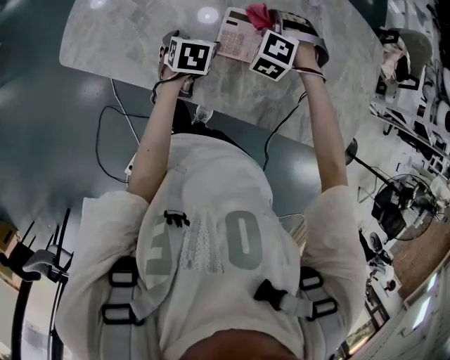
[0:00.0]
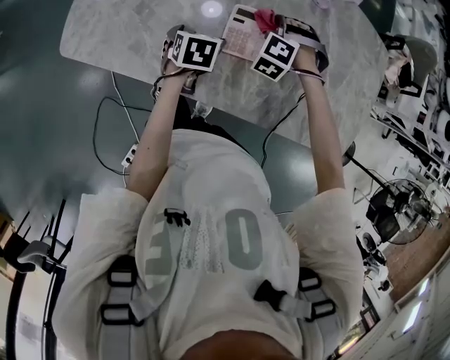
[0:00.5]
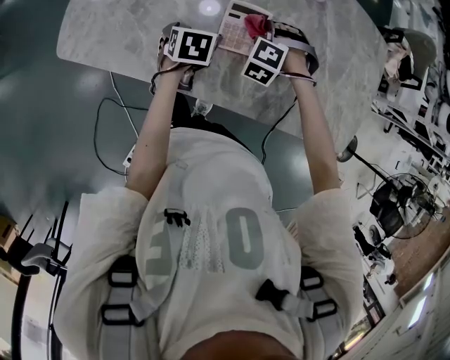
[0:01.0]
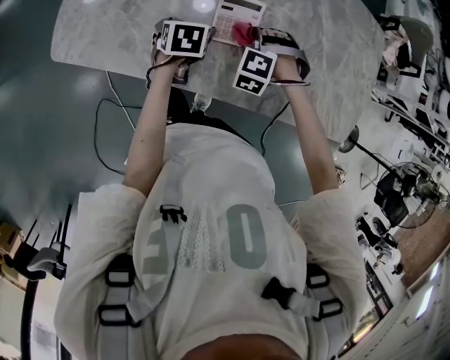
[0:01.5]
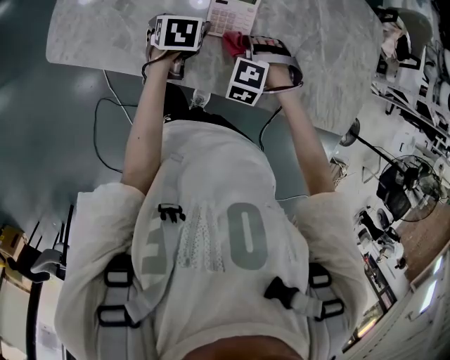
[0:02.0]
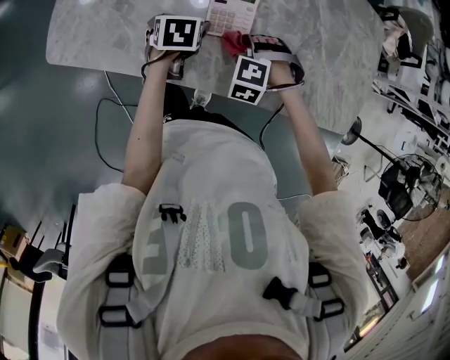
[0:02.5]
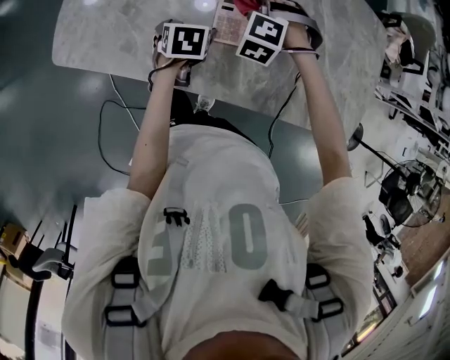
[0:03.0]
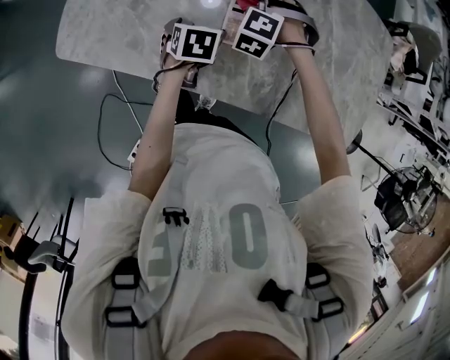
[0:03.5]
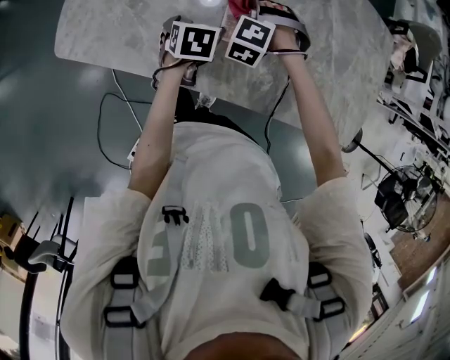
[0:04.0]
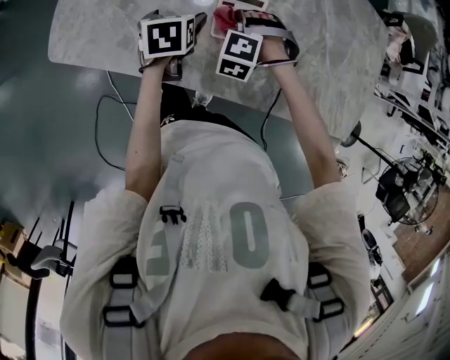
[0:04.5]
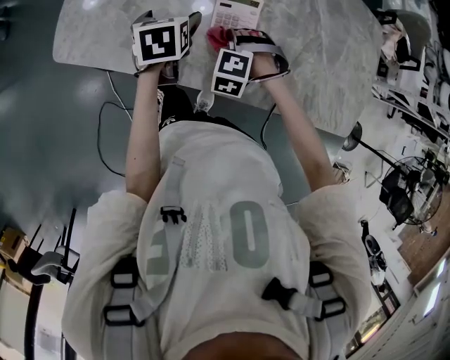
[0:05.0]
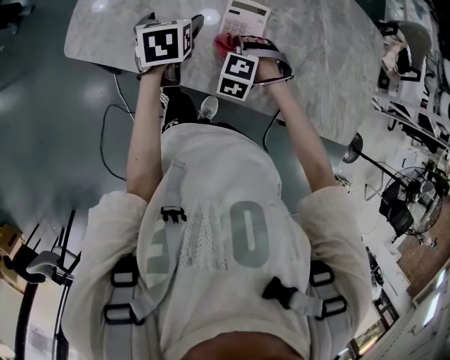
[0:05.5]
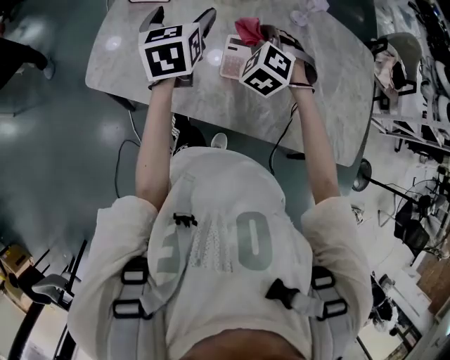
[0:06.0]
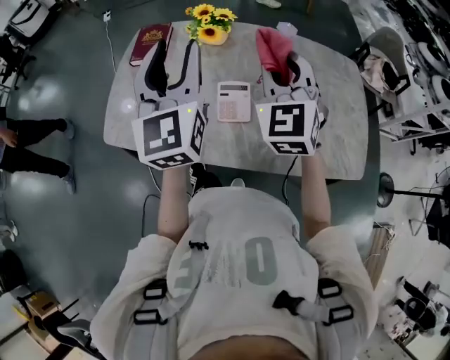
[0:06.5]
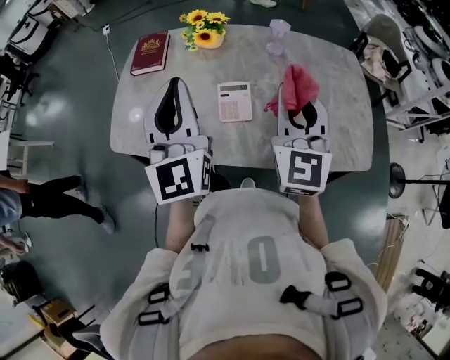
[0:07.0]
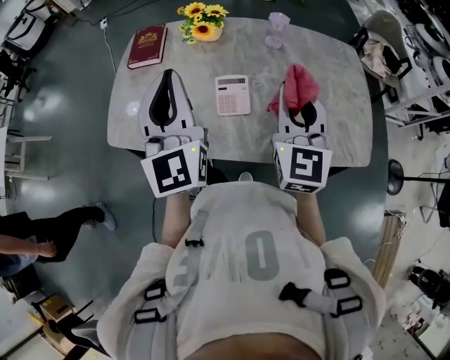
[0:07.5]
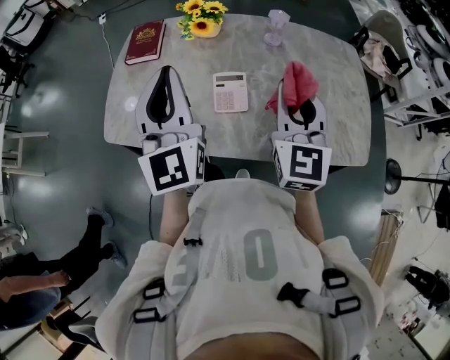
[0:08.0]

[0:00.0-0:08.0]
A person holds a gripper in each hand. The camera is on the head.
0.0 to 2.0 s: The right gripper goes roughly 15 cm backward and downward.
2.0 to 4.0 s: The right gripper goes approximately 15 cm forward and to the left.
4.0 to 6.0 s: The left gripper shifts some 25 cm upward, and points its fingers about 30 degrees further upward. The right gripper travels upward by some 15 cm, and changes its angle by roughly 20 degrees.
6.0 to 8.0 s: The two grippers go about 25 cm upward, backward and to the right. The right gripper angles its fingers upward, by roughly 40 degrees; the left gripper points its fingers roughly 30 degrees further upward, and closes.

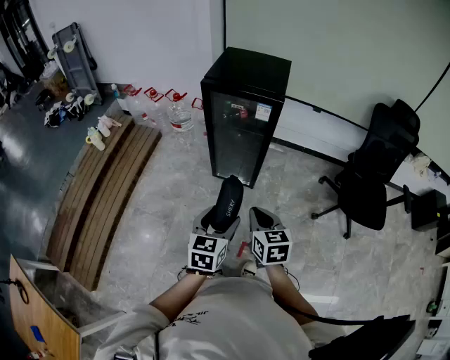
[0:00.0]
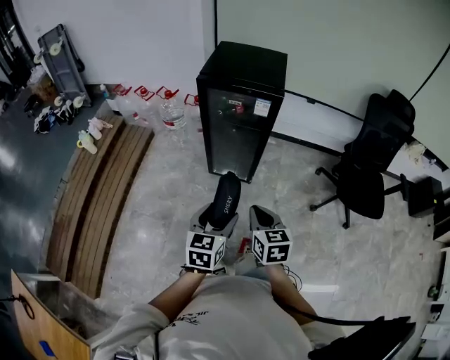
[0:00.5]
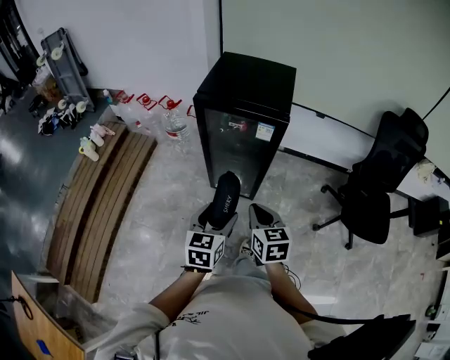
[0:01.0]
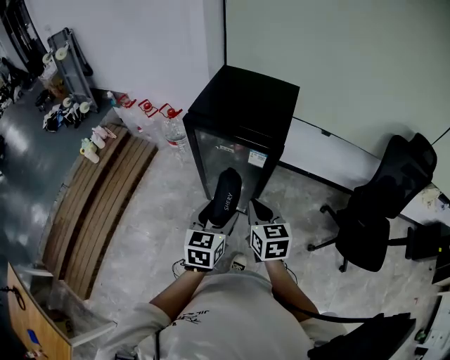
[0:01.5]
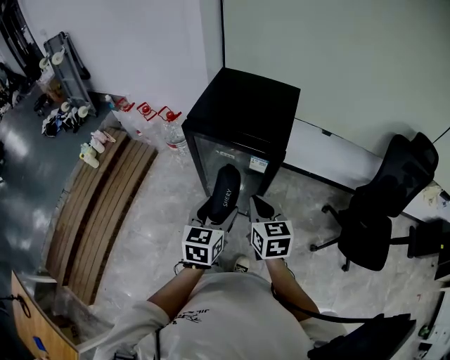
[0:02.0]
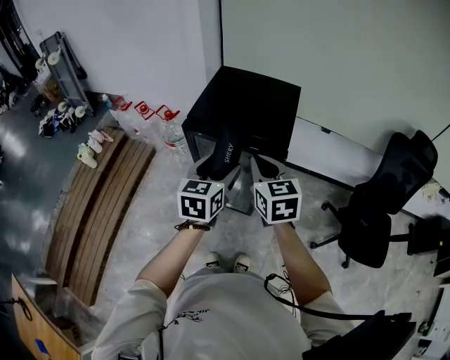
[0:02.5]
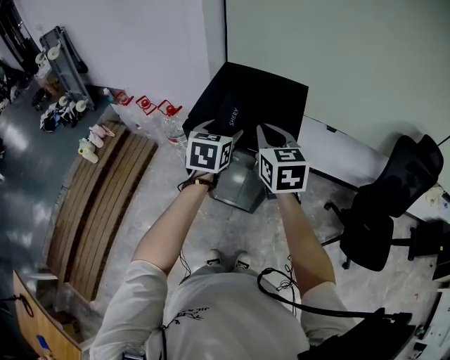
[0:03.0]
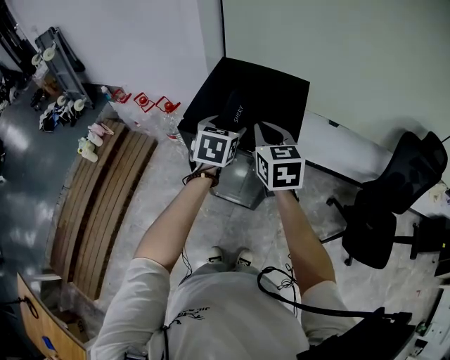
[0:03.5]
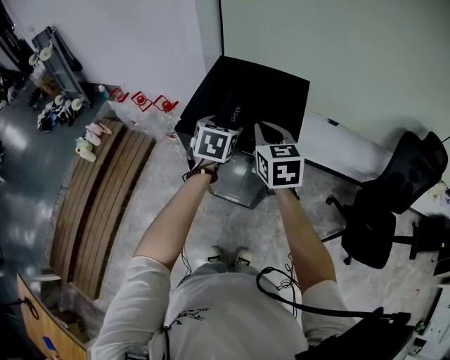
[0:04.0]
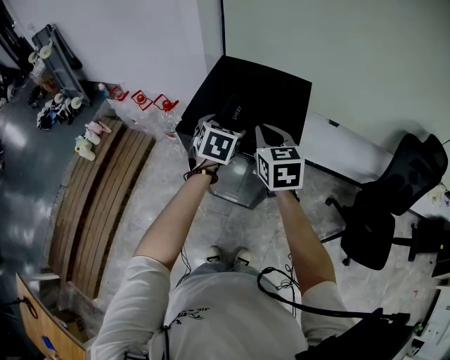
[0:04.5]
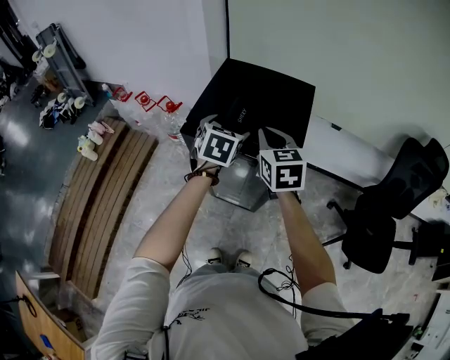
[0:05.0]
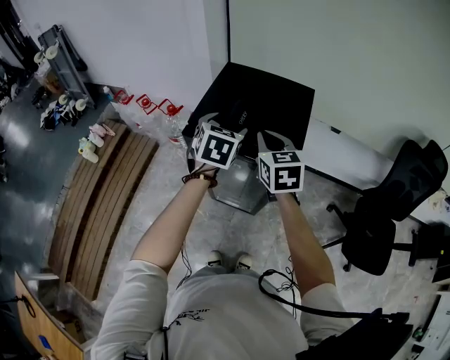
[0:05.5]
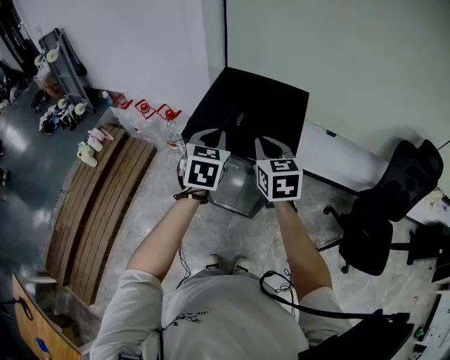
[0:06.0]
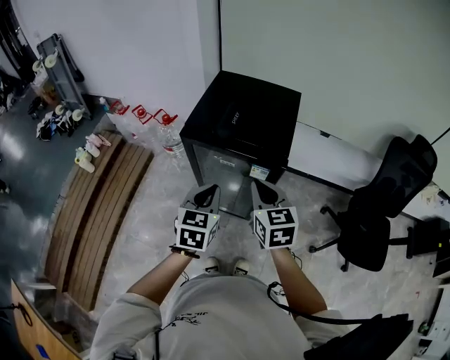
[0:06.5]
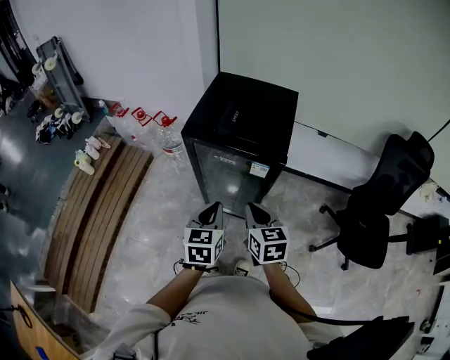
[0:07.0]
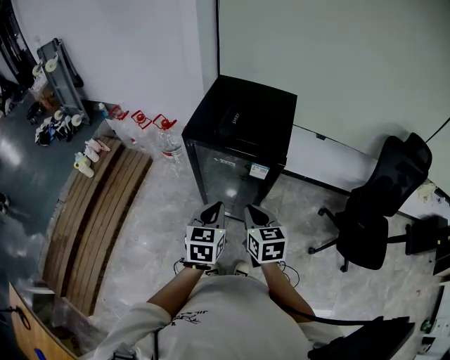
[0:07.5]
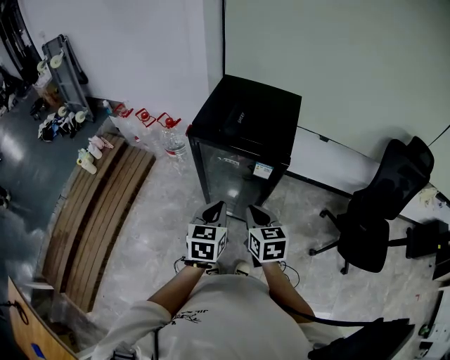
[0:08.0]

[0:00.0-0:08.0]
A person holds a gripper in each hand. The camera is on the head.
0.0 to 2.0 s: The grippers both shift forward by roughly 30 cm.
2.0 to 4.0 s: The two grippers go about 25 cm forward.
4.0 to 6.0 s: The left gripper moves upward and backward, approximately 10 cm, and closes its fingers.
6.0 to 8.0 s: The two grippers go about 25 cm backward and downward.

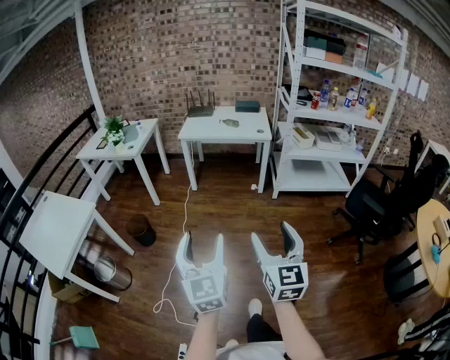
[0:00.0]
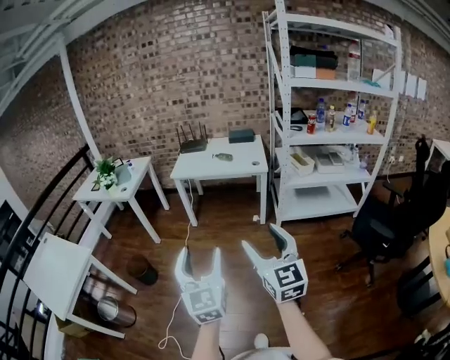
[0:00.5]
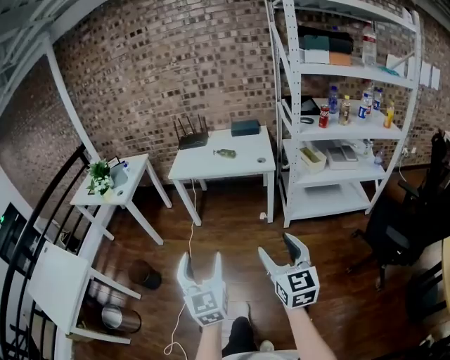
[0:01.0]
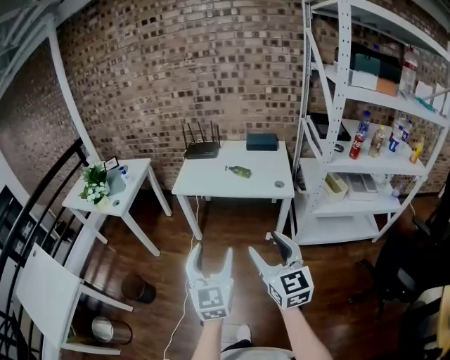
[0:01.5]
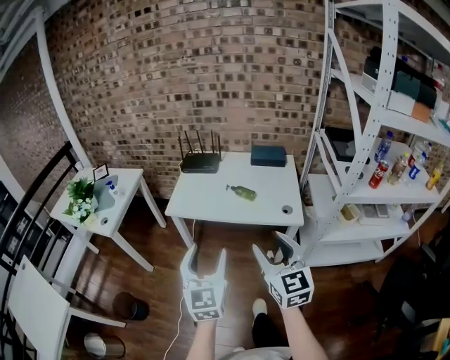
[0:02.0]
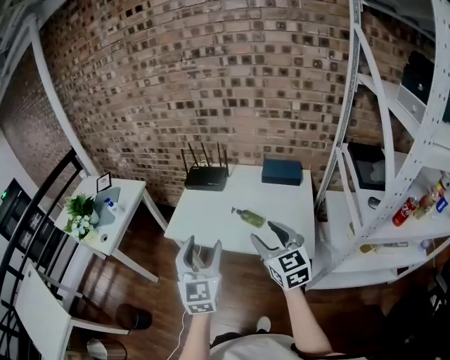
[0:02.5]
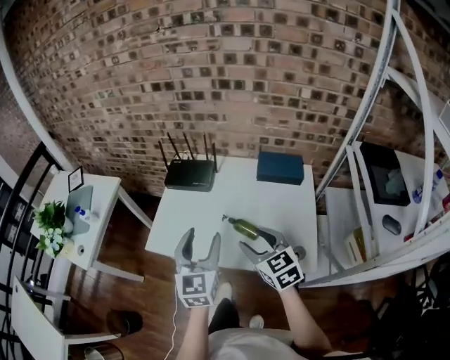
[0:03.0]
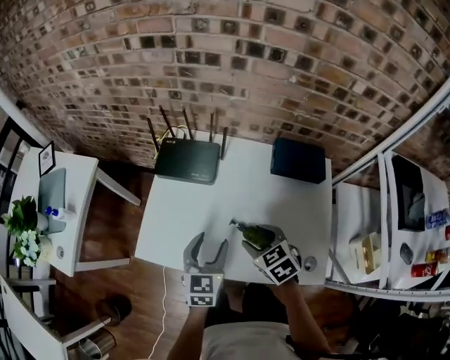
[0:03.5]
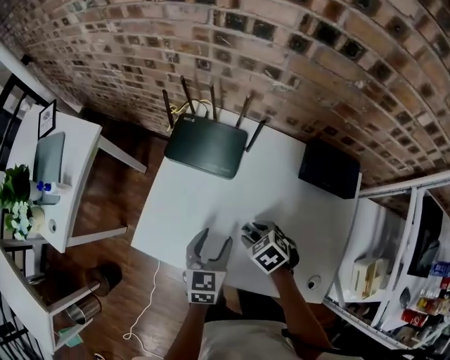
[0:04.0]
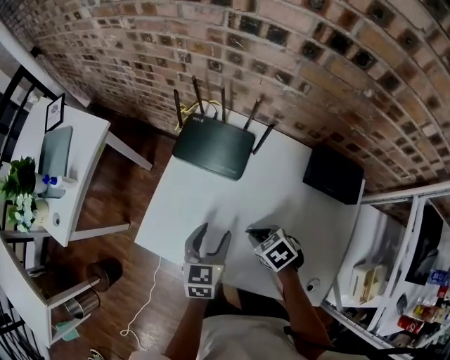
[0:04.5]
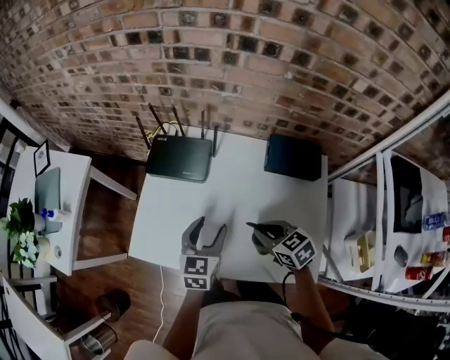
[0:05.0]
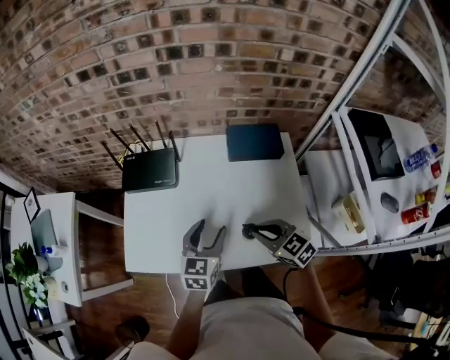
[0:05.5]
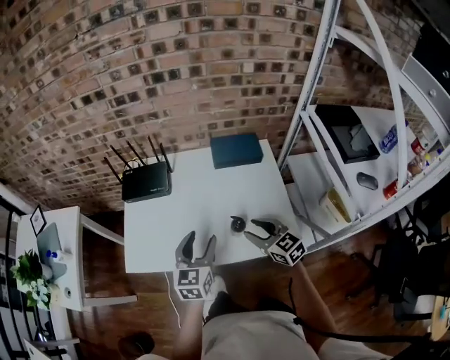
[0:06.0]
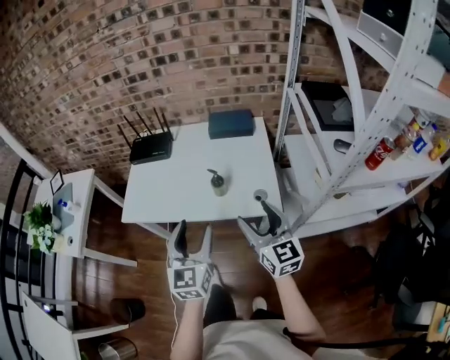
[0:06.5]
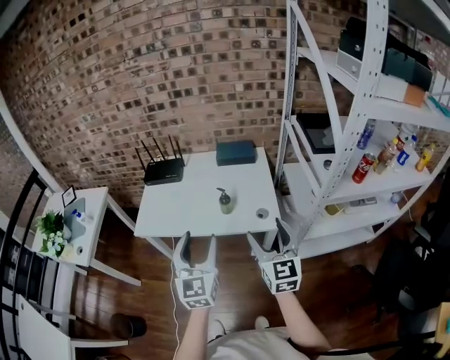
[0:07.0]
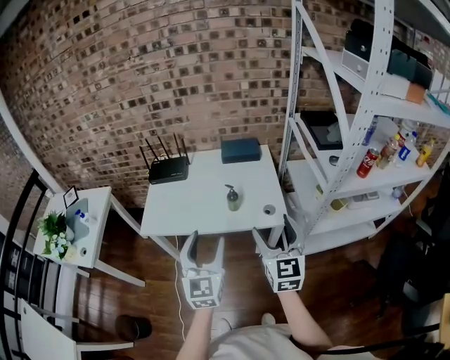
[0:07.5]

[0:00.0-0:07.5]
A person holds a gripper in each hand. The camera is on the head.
0.0 to 2.0 s: The two grippers travel together, forward, approximately 70 cm.
2.0 to 4.0 s: The pair of grippers is taken forward, approximately 50 cm. The two grippers go approximately 35 cm downward. The right gripper angles its fingers downward, by some 60 degrees. Meanwhile the left gripper tips its fingers downward by some 30 degrees.
4.0 to 5.5 s: The right gripper changes place by some 20 cm, tips its fingers upward by roughly 30 degrees, and closes. The left gripper changes place by some 15 cm, and swivels about 30 degrees.
5.5 to 7.5 s: Both grippers travel together backward and upward, about 40 cm. The left gripper turns by approximately 30 degrees; the right gripper tilts its fingers some 30 degrees upward, and opens.

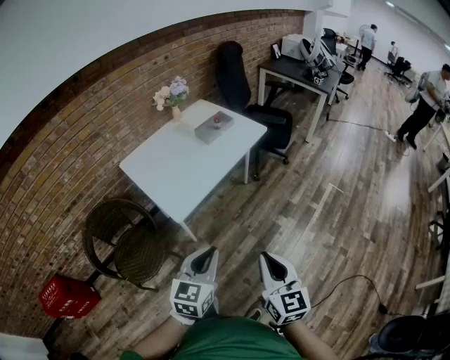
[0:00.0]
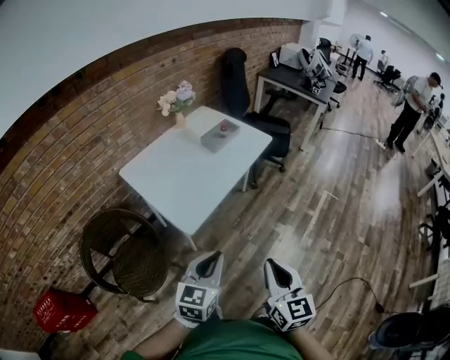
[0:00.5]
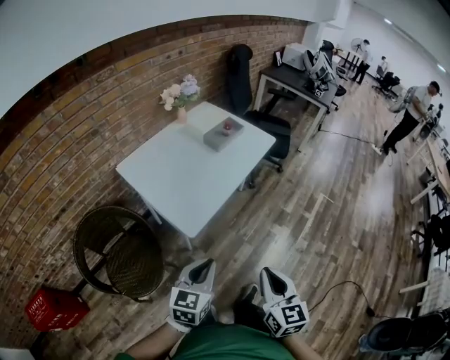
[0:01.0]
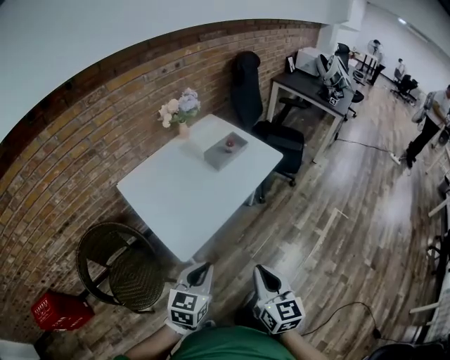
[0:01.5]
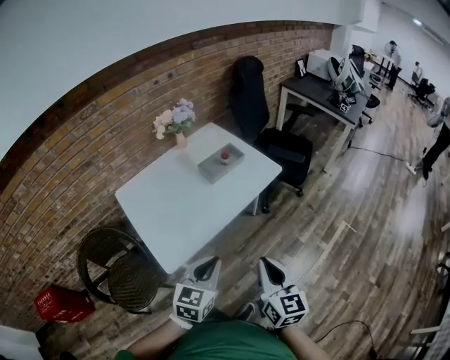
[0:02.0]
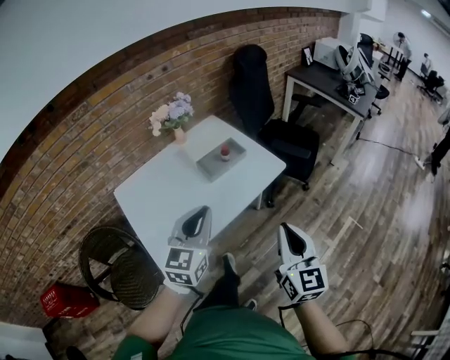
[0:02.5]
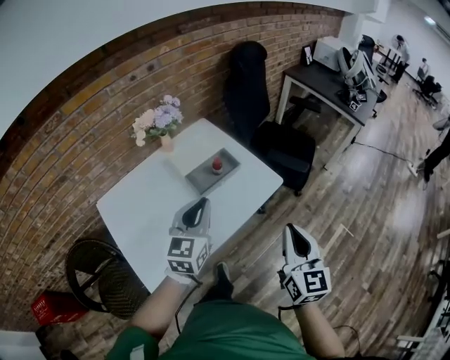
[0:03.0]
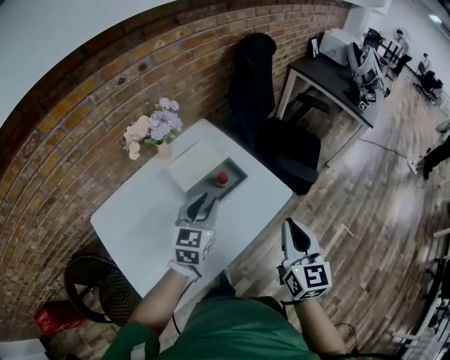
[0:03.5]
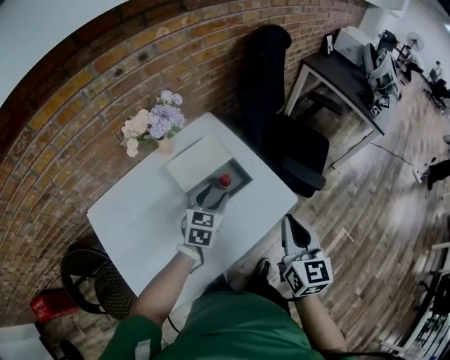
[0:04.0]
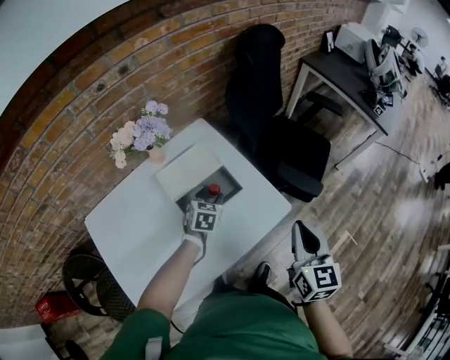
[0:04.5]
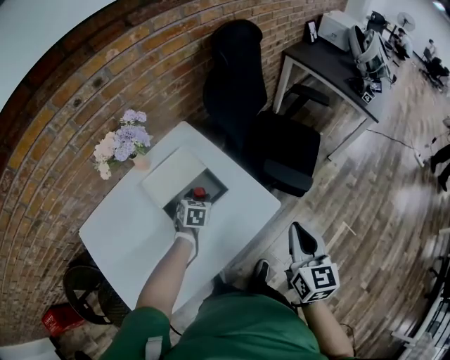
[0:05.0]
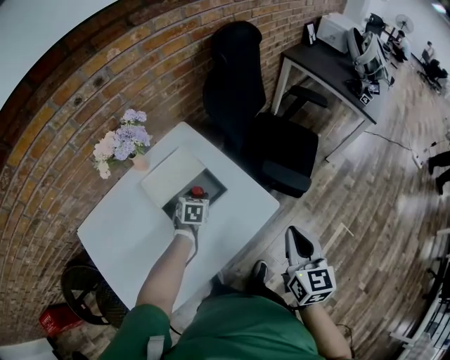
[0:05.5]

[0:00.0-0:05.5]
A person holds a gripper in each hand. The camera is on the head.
0.0 to 2.0 s: The grippers both shift forward by approximately 25 cm.
2.0 to 3.5 s: Both grippers travel together forward, approximately 40 cm. The left gripper opens.
3.5 to 5.5 s: The right gripper travels to the right, forward and downward by about 15 cm. Meanwhile the left gripper heads downward and forward, covering approximately 25 cm, tilts its fingers about 30 degrees downward, and opens.
